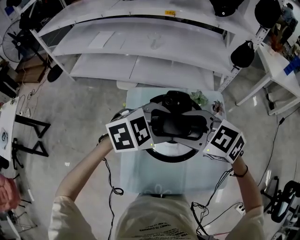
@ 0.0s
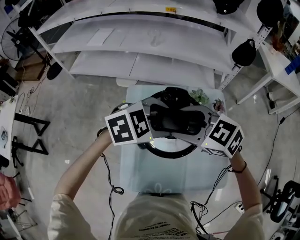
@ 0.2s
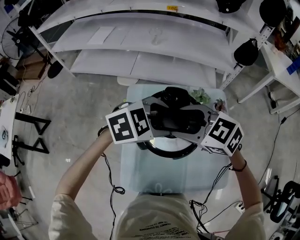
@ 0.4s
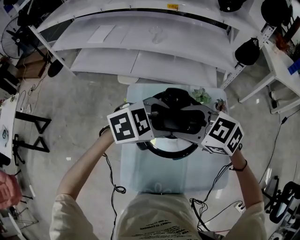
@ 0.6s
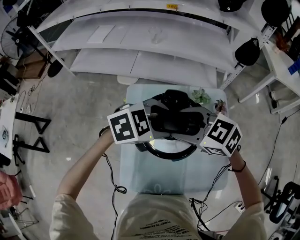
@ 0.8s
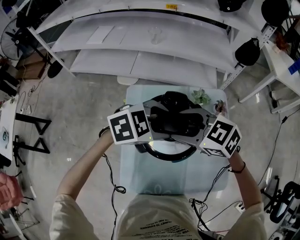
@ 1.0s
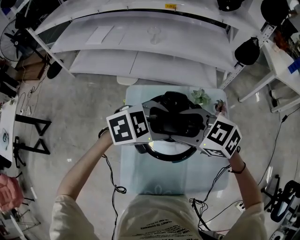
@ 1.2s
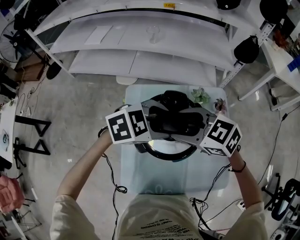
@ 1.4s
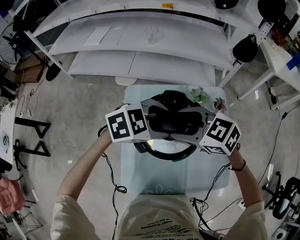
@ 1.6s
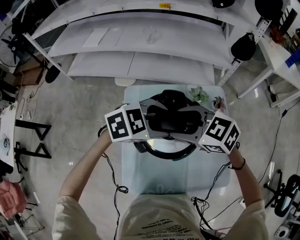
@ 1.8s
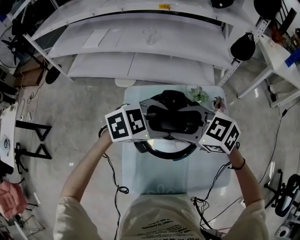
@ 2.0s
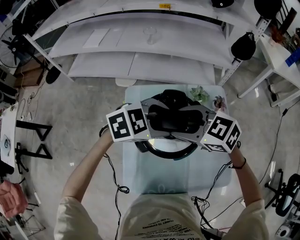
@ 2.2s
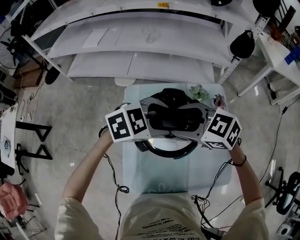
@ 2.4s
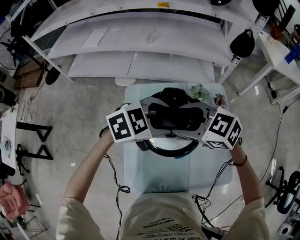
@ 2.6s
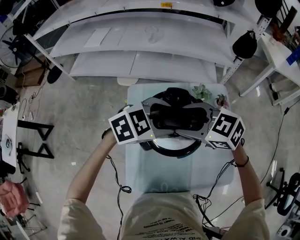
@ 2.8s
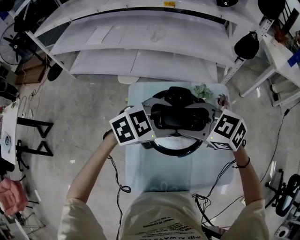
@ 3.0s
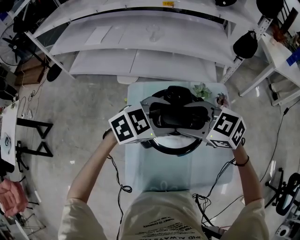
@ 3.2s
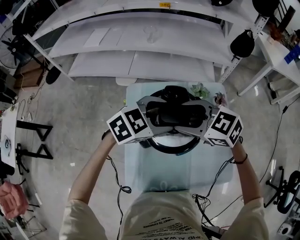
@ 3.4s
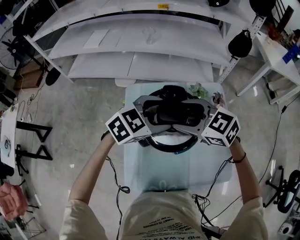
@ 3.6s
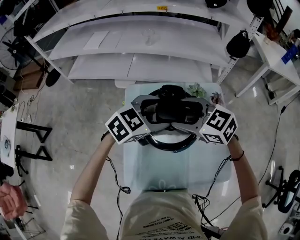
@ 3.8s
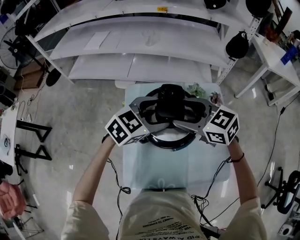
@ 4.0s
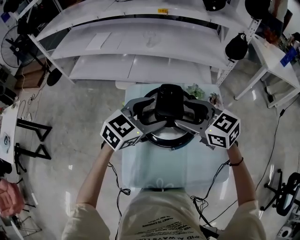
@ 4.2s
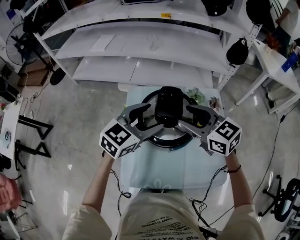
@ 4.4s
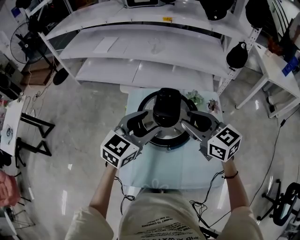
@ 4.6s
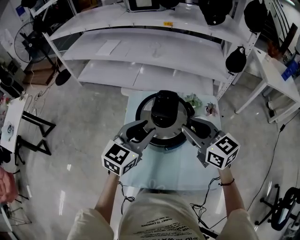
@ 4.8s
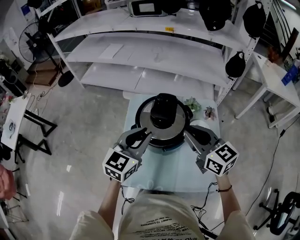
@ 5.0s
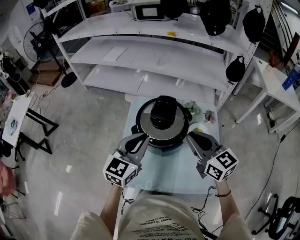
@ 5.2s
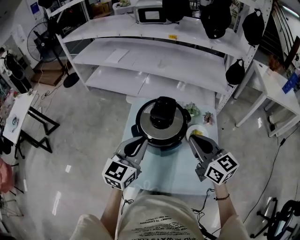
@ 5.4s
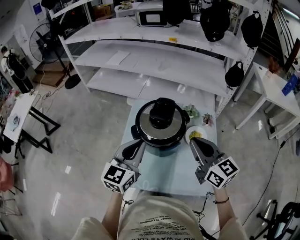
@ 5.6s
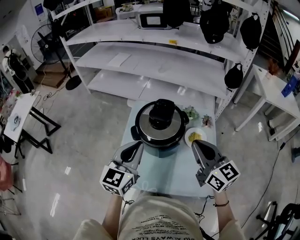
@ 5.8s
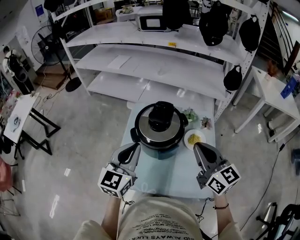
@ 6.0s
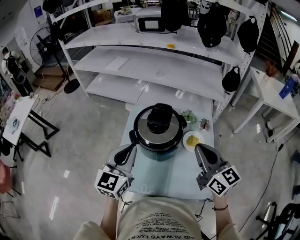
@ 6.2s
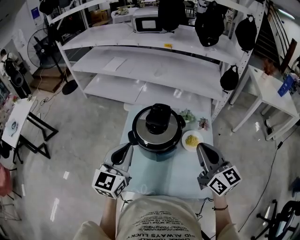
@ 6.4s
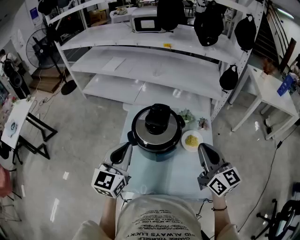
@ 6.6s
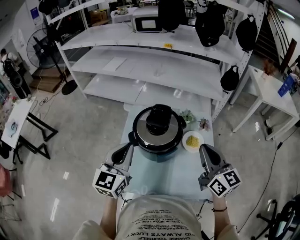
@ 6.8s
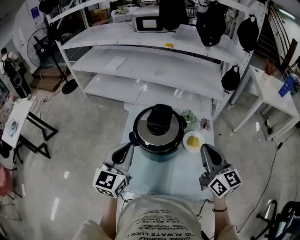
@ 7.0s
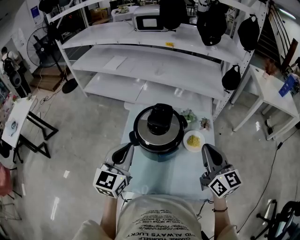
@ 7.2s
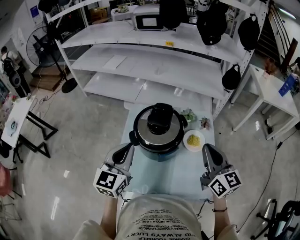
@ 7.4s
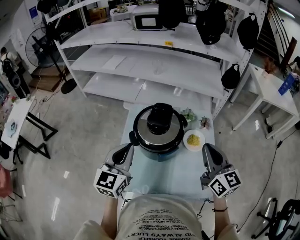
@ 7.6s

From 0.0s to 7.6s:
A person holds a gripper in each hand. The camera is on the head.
From 0.0s to 3.0s: The grippers move only a little.
From 3.0s to 4.6s: The right gripper changes place by approximately 10 cm, turns by approximately 30 degrees, and closes its fingers. The left gripper changes place by approximately 5 cm, and changes its angle by roughly 40 degrees.
From 4.6s to 6.0s: The right gripper is displaced backward and to the right by some 15 cm, and closes; the left gripper goes roughly 10 cm backward, changes its angle by about 30 degrees, and closes.
From 6.0s to 7.6s: The grippers move only a little.

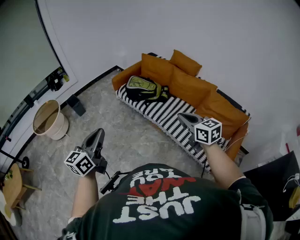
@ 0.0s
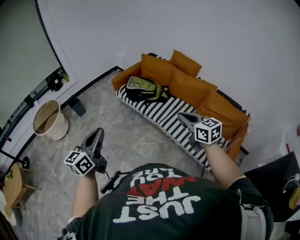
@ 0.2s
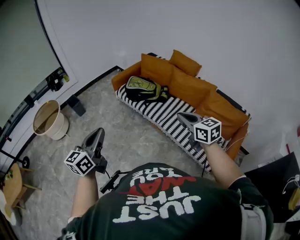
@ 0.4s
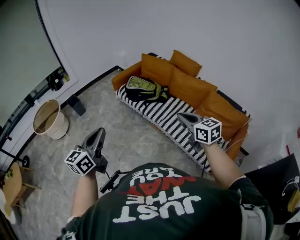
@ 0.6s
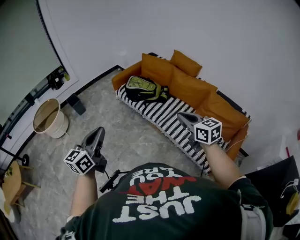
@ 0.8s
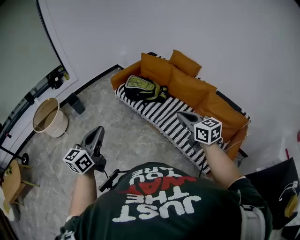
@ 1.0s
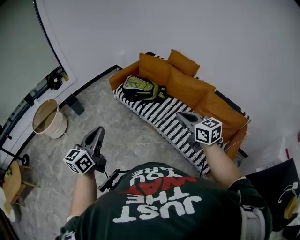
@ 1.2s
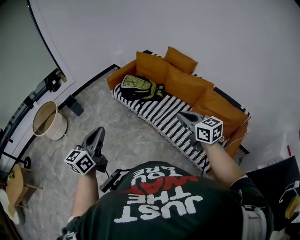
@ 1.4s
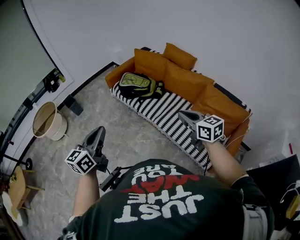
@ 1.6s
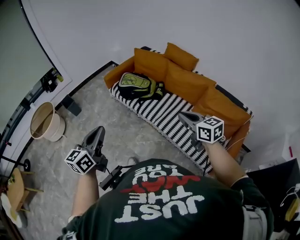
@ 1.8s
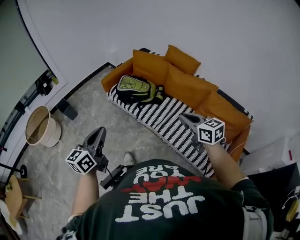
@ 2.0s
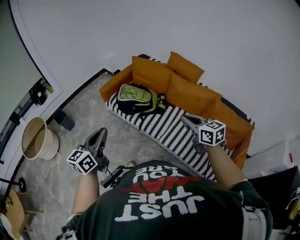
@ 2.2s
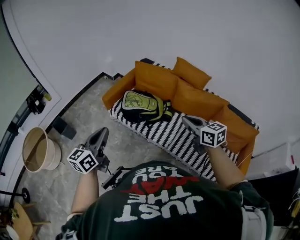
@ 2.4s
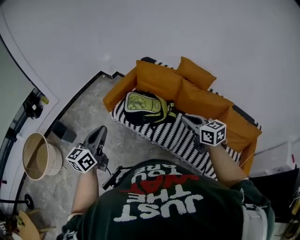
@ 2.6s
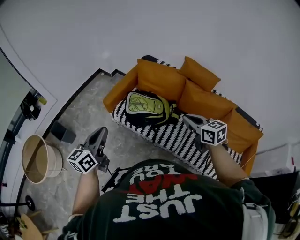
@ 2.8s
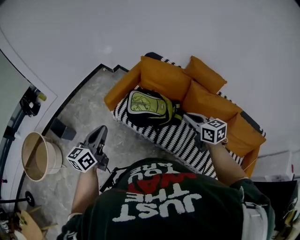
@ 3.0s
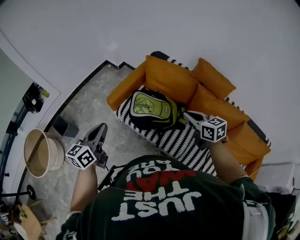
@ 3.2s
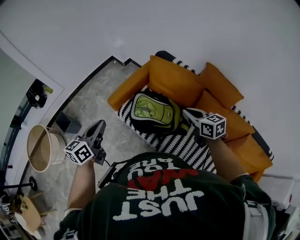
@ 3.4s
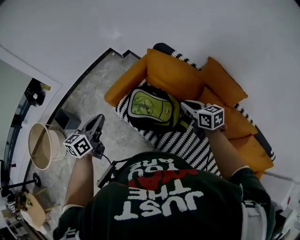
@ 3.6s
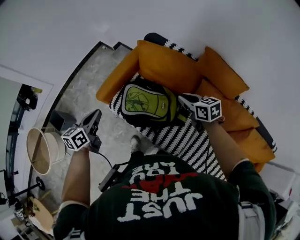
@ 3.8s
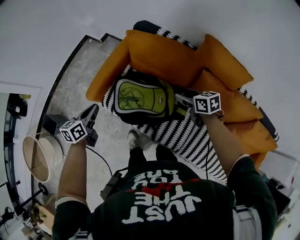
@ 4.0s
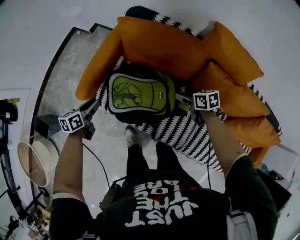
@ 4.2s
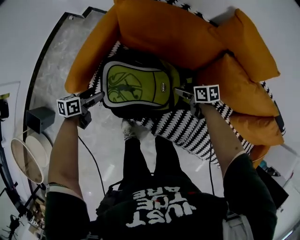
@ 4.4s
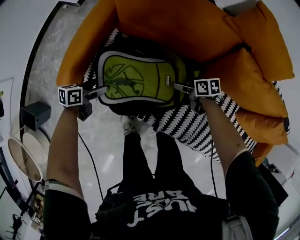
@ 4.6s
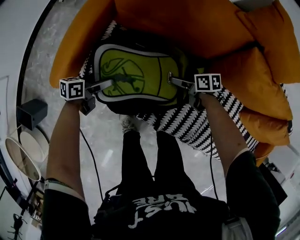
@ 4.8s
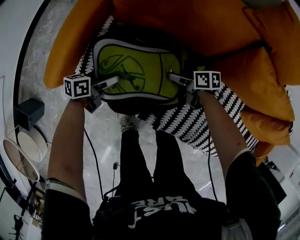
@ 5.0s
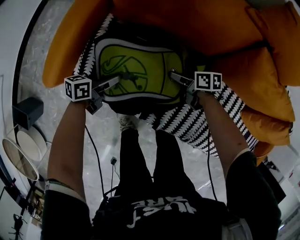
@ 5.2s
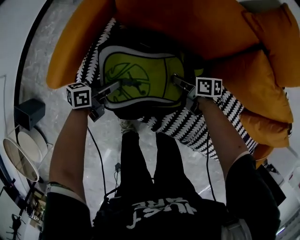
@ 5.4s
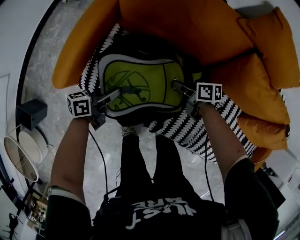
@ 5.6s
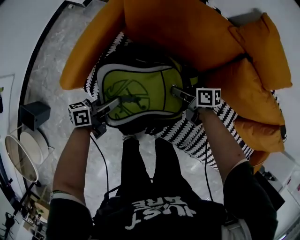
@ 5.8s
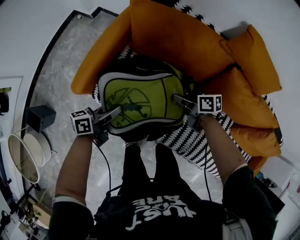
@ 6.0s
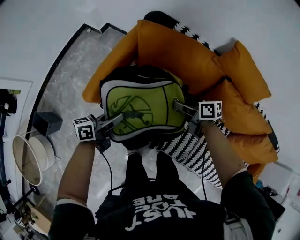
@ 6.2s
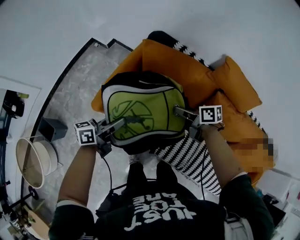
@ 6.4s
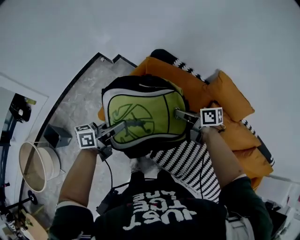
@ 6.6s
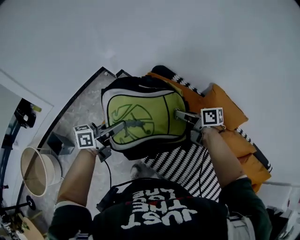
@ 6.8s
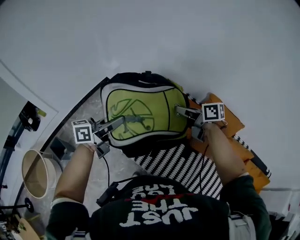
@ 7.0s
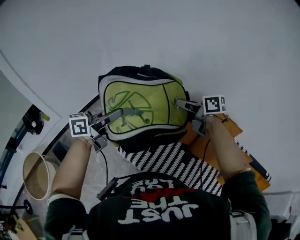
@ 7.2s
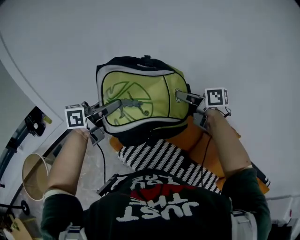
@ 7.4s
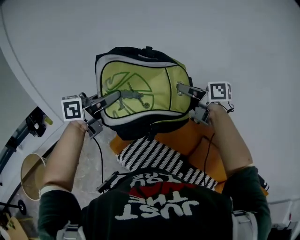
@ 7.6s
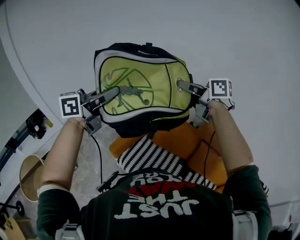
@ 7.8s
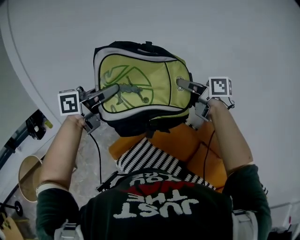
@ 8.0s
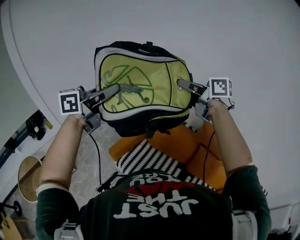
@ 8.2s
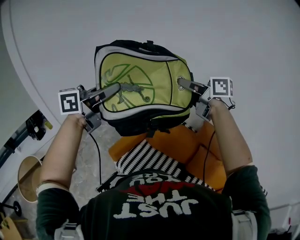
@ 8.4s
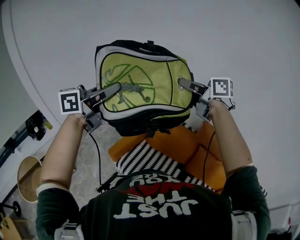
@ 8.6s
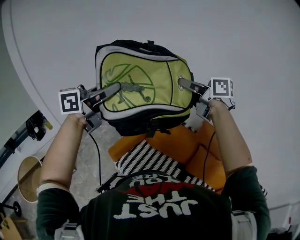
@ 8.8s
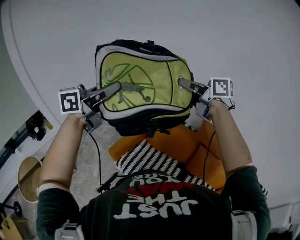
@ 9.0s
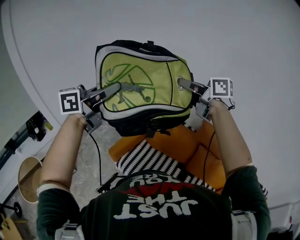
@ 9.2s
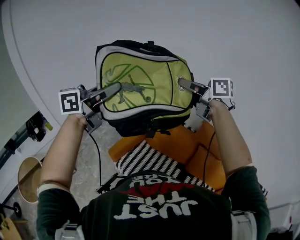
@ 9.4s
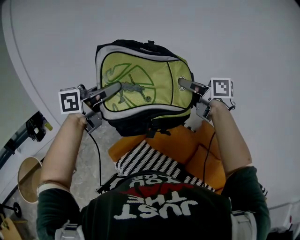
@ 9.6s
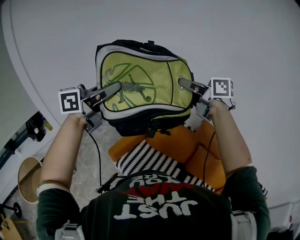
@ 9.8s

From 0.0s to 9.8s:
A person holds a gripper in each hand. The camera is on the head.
From 0.0s to 1.4s: The two grippers go roughly 10 cm to the right.
From 1.4s to 2.8s: The pair of grippers is taken forward, about 50 cm.
From 2.8s to 4.2s: The two grippers go some 50 cm downward and forward. The right gripper rotates about 30 degrees, and opens. The left gripper tilts its fingers about 30 degrees downward.
From 4.2s to 5.6s: The left gripper shifts by roughly 20 cm, swivels roughly 30 degrees, and opens and closes again, while the right gripper shifts some 15 cm downward, turns by roughly 20 degrees, and closes.
From 5.6s to 7.0s: Both grippers move upward, about 50 cm. The right gripper swivels about 30 degrees. The left gripper turns by about 30 degrees.
From 7.0s to 8.4s: The right gripper rotates some 30 degrees; the left gripper moves upward, some 5 cm, and turns by roughly 30 degrees.
From 8.4s to 9.8s: Neither gripper changes place.

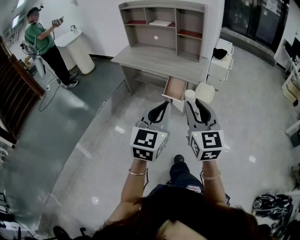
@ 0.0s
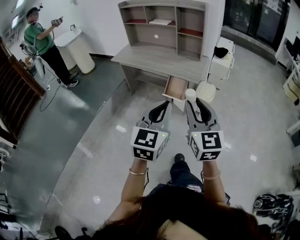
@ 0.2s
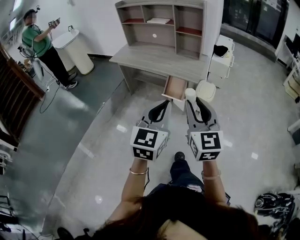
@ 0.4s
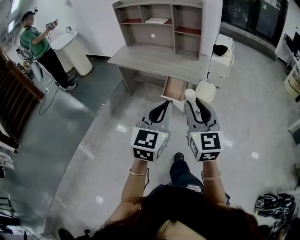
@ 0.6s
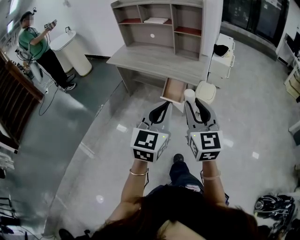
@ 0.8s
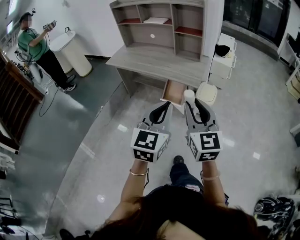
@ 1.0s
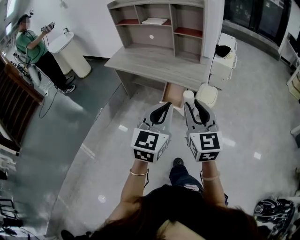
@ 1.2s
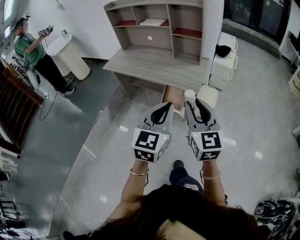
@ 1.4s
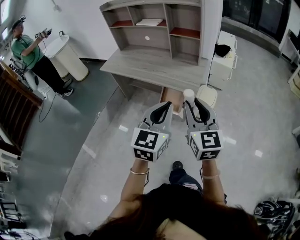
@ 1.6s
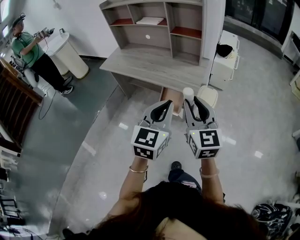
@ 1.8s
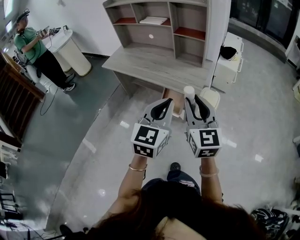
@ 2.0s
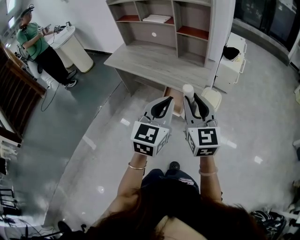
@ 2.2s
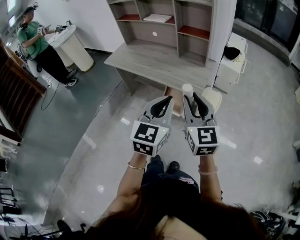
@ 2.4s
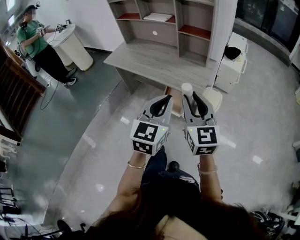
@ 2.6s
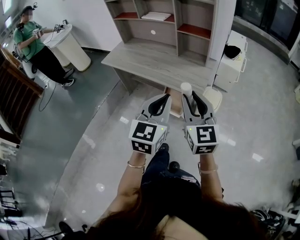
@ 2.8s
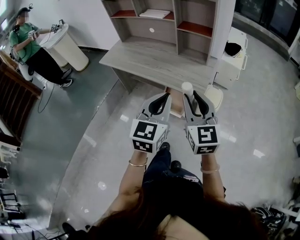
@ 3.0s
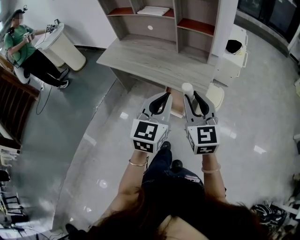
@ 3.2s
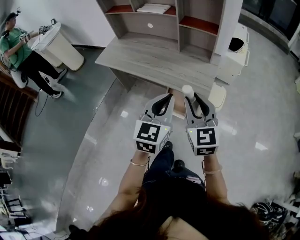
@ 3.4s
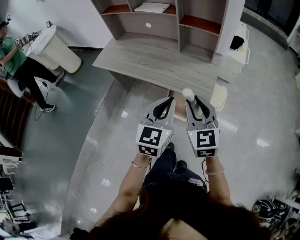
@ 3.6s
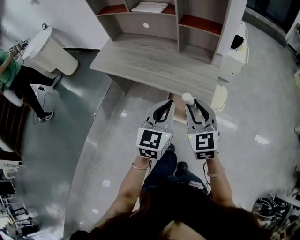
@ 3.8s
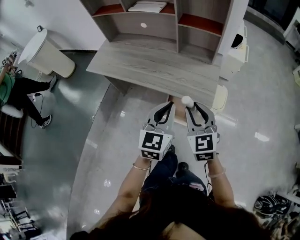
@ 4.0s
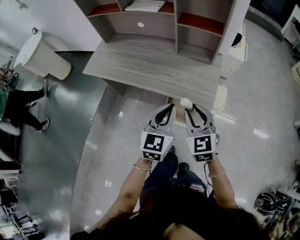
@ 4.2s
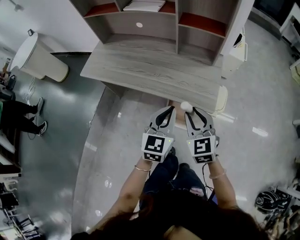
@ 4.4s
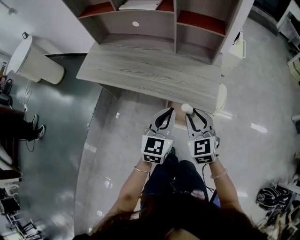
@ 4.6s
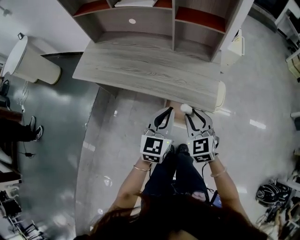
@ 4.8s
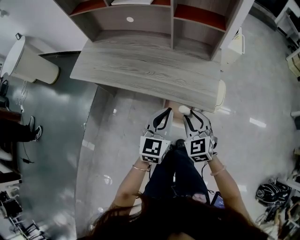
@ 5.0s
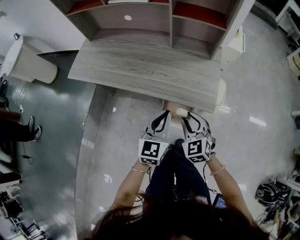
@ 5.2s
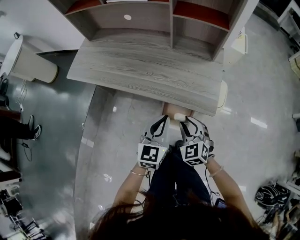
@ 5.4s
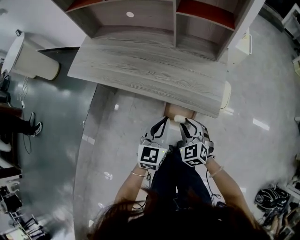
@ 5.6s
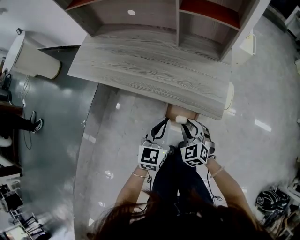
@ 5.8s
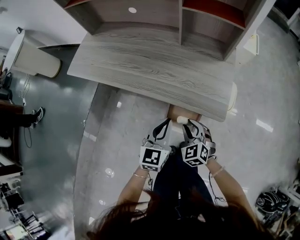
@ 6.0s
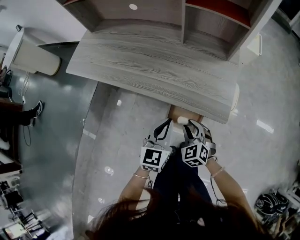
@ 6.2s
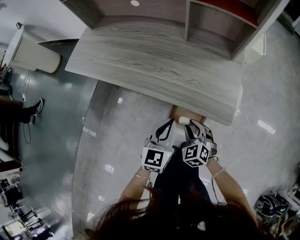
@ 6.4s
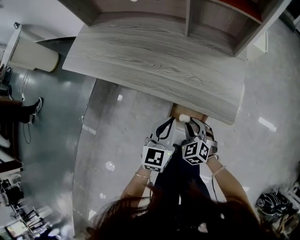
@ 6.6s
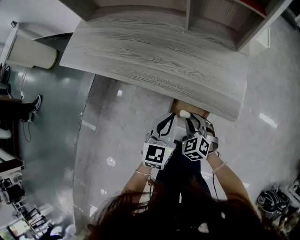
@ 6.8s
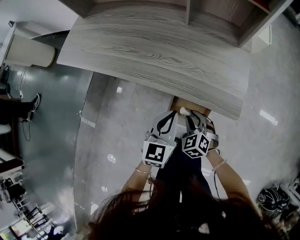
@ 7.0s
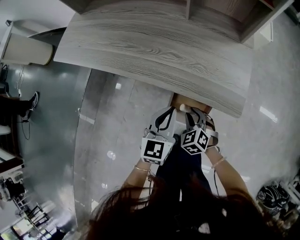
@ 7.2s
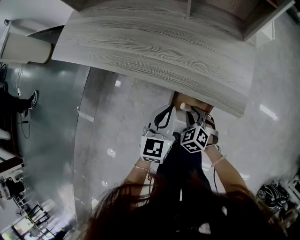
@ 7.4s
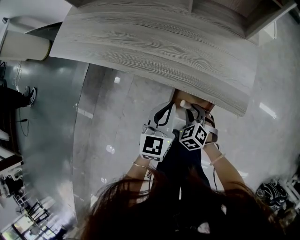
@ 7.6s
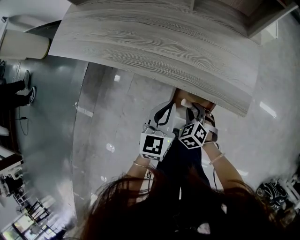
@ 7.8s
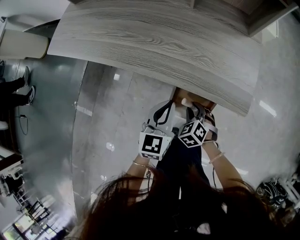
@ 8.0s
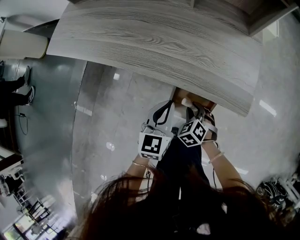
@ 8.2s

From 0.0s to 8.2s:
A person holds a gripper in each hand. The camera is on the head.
From 0.0s to 1.6s: Both grippers move forward, roughly 20 cm.
From 1.6s to 3.2s: Both grippers move forward, roughly 15 cm.
From 3.2s to 5.0s: Both grippers travel together downward and forward, approximately 25 cm. The right gripper swivels about 30 degrees.
From 5.0s to 6.6s: The grippers both shift downward by roughly 20 cm.
From 6.6s to 8.2s: The right gripper heads downward, covering approximately 10 cm. Meanwhile the left gripper is displaced downward by roughly 5 cm.
